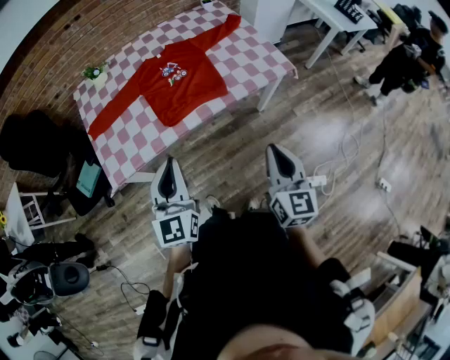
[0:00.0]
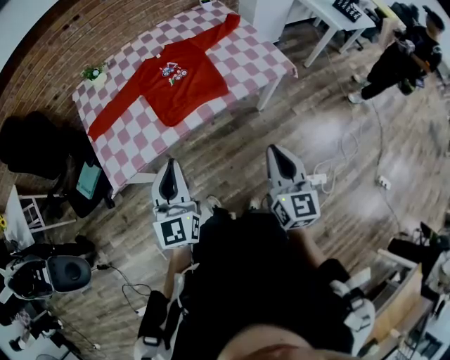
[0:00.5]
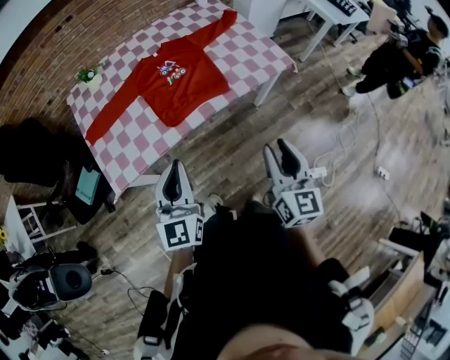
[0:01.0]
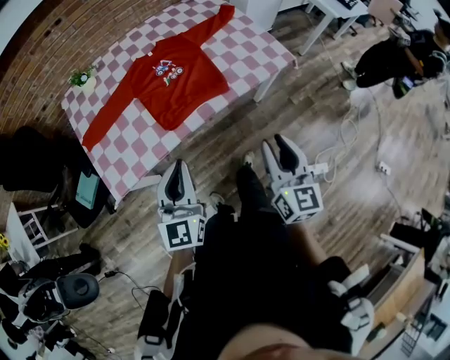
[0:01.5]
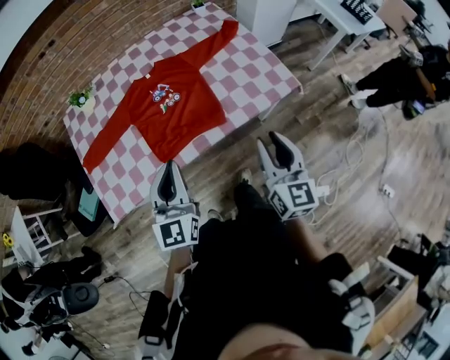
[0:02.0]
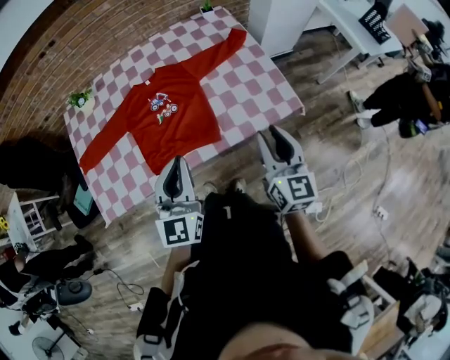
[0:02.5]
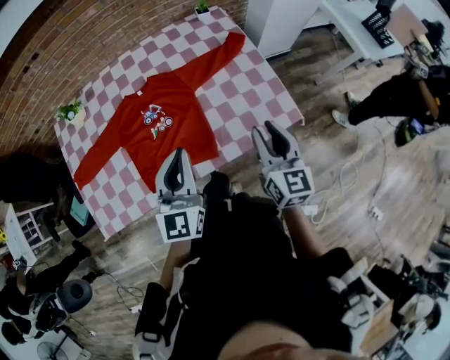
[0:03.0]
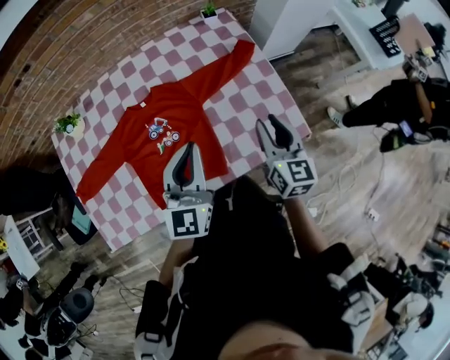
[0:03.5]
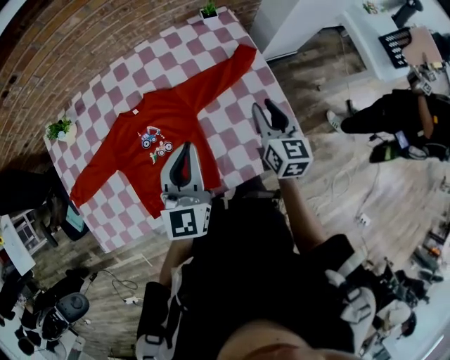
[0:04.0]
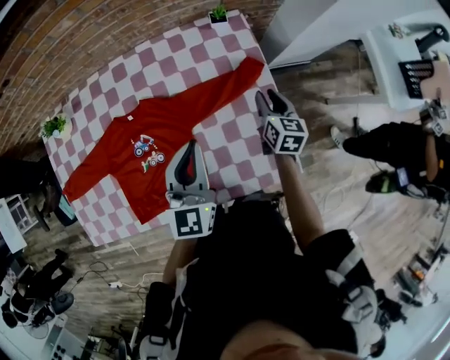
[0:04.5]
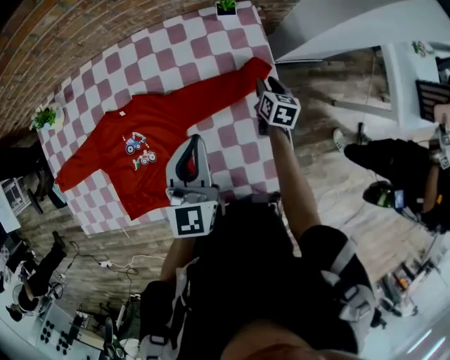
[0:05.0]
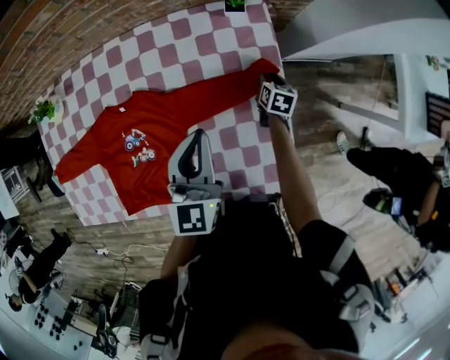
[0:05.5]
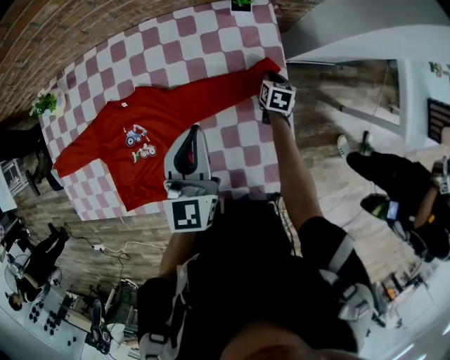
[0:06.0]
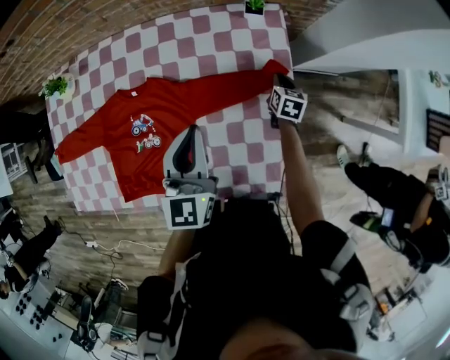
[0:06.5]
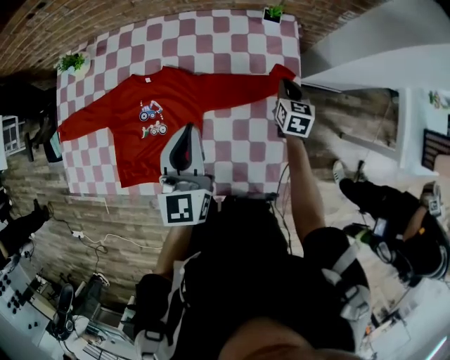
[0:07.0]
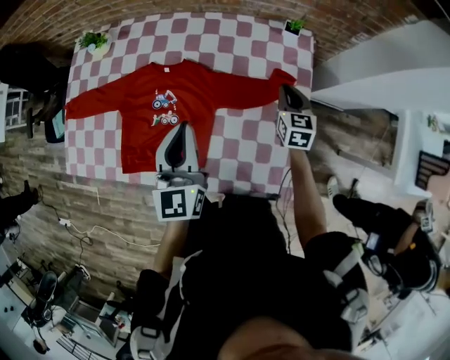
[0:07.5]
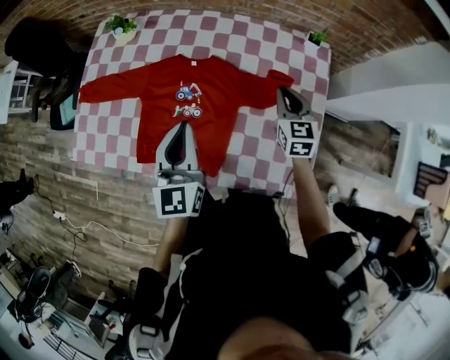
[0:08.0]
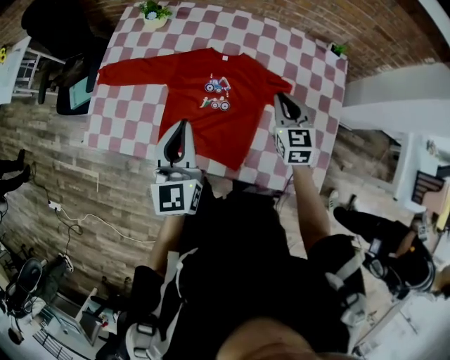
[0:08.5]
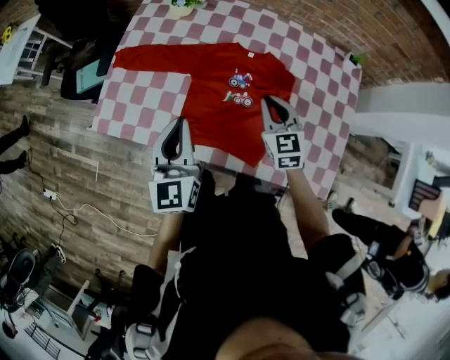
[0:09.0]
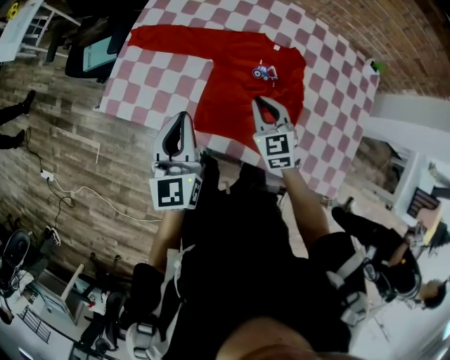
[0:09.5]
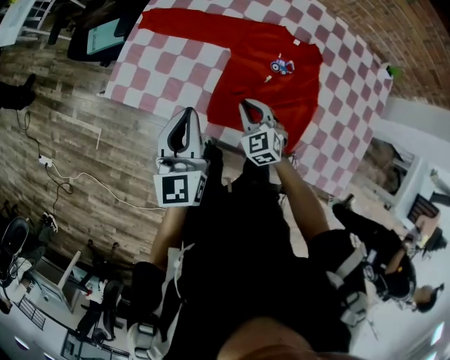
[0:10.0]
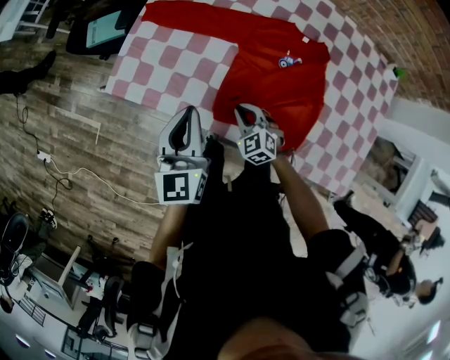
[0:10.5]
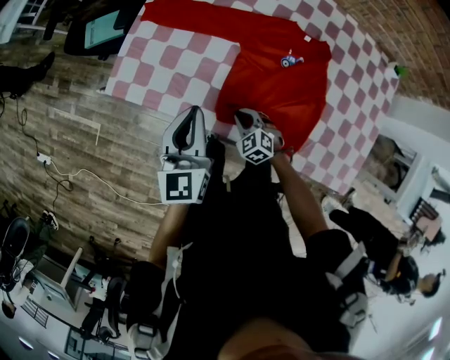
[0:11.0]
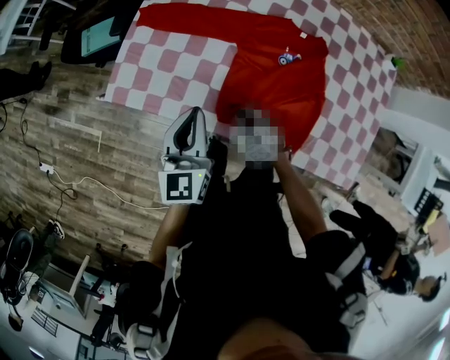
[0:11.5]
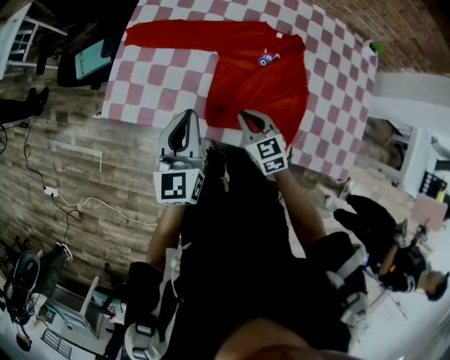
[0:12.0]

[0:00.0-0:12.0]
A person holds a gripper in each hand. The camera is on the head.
0:00.0 to 0:02.0: The grippers both shift forward by about 20 cm. The right gripper opens up.
0:02.0 to 0:04.0: Both grippers move forward, some 40 cm.
0:04.0 to 0:06.0: The right gripper goes roughly 40 cm downward and forward, points its fingers about 30 degrees further downward, and closes up. The left gripper goes roughly 20 cm forward and to the right.
0:06.0 to 0:08.0: The right gripper moves upward, to the left and backward, approximately 35 cm, and swivels some 50 degrees; the left gripper is displaced to the left and backward by roughly 30 cm, and turns by approximately 20 degrees.
0:08.0 to 0:10.0: The two grippers go roughly 40 cm to the left. The right gripper swivels roughly 40 degrees.
0:10.0 to 0:12.0: The right gripper travels downward and back again, approximately 10 cm each way, and swivels roughly 20 degrees.

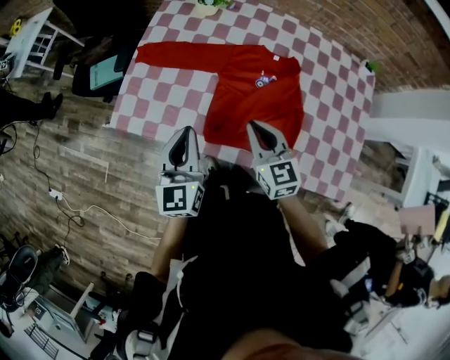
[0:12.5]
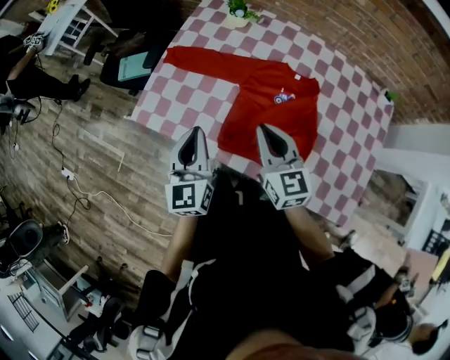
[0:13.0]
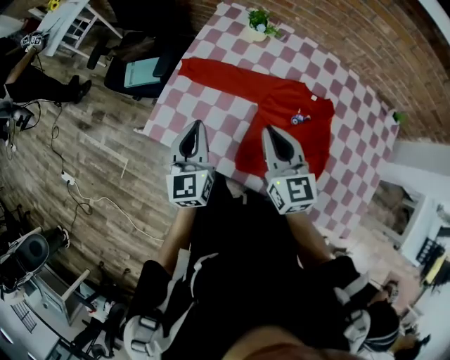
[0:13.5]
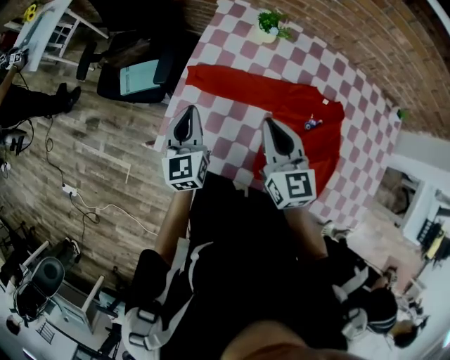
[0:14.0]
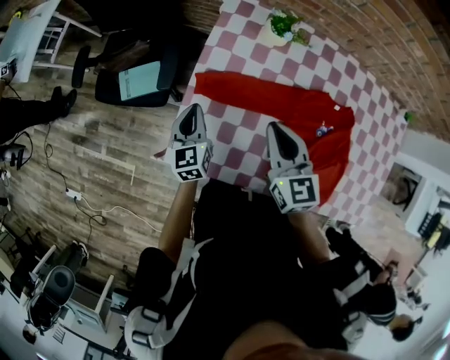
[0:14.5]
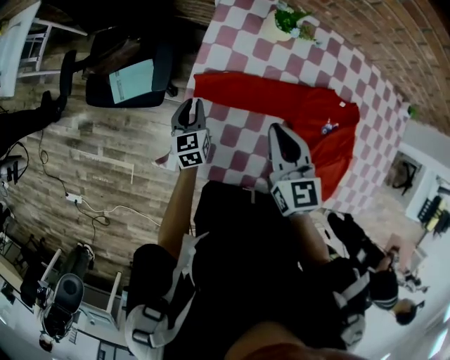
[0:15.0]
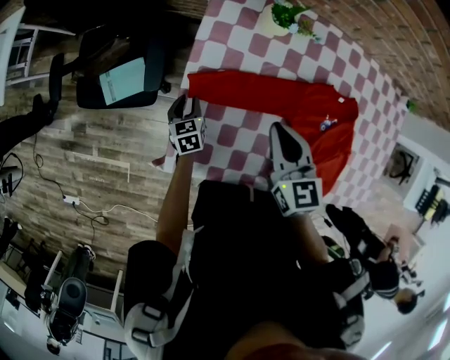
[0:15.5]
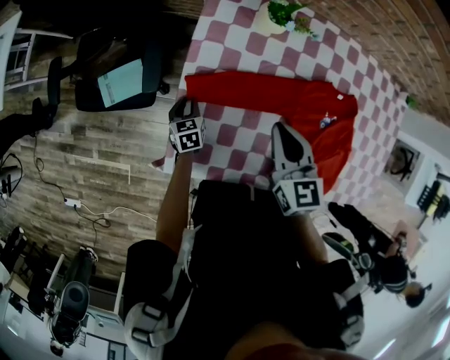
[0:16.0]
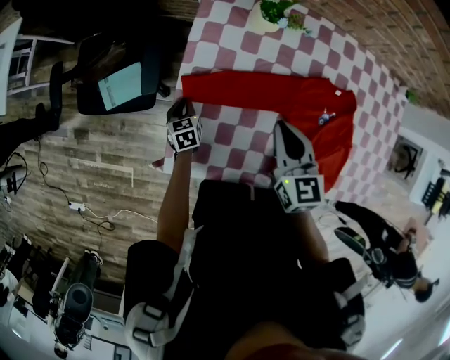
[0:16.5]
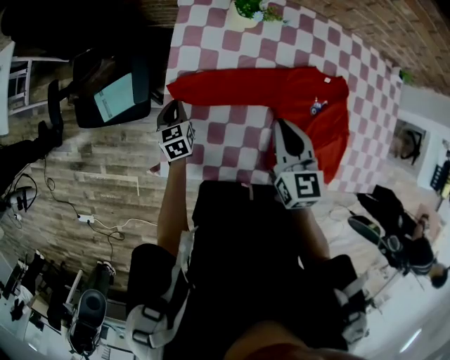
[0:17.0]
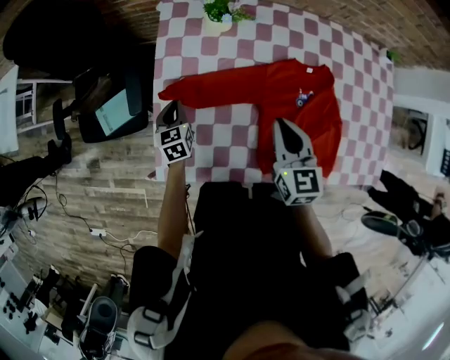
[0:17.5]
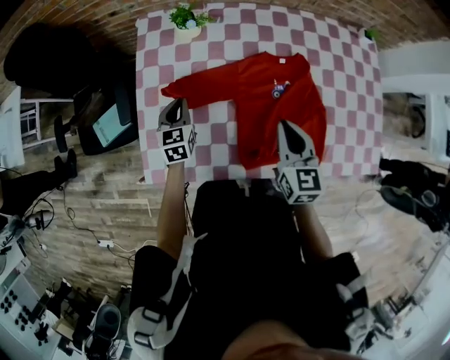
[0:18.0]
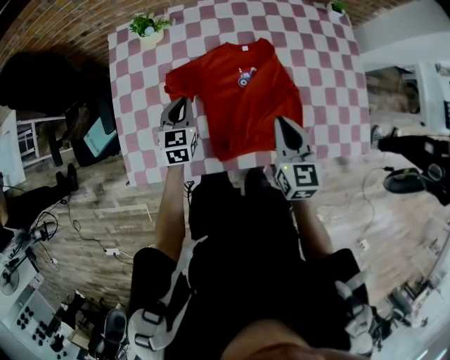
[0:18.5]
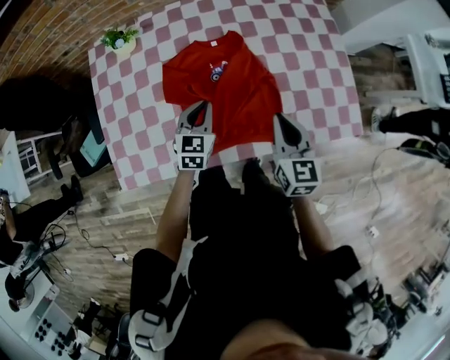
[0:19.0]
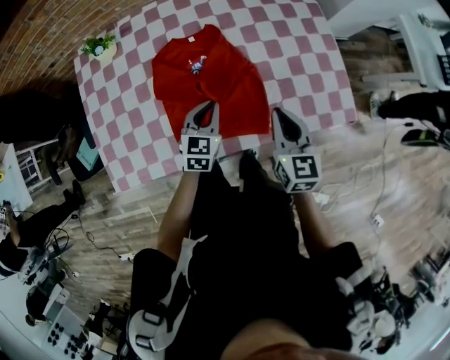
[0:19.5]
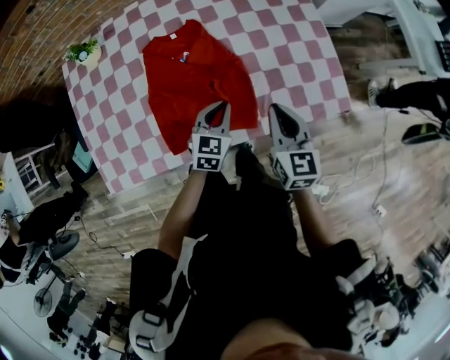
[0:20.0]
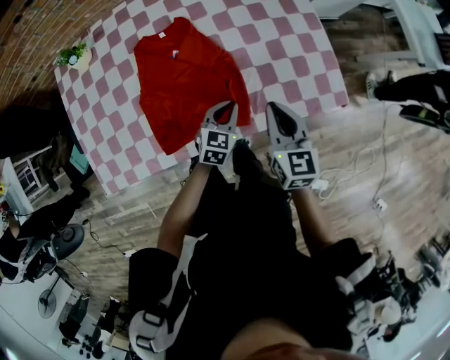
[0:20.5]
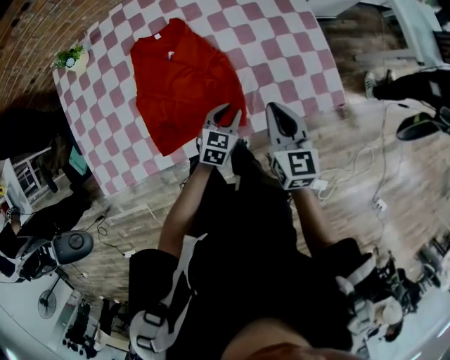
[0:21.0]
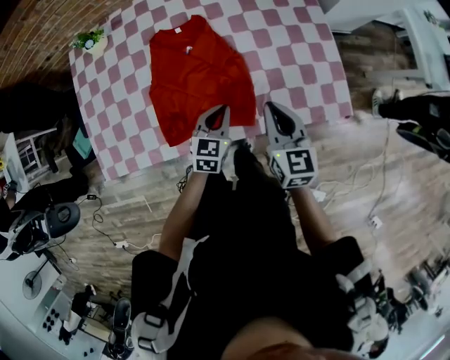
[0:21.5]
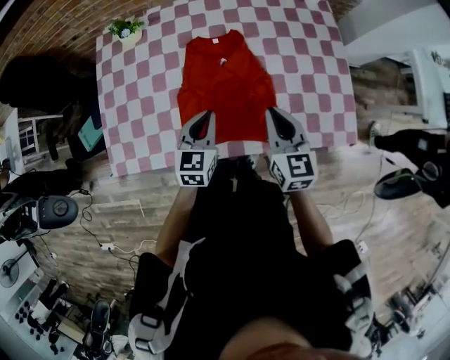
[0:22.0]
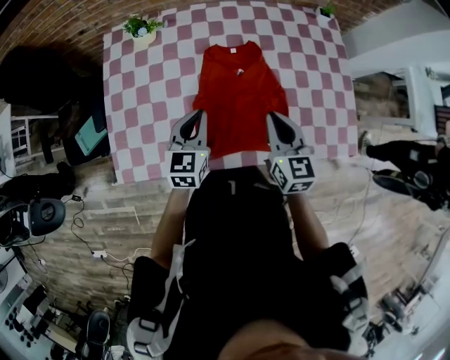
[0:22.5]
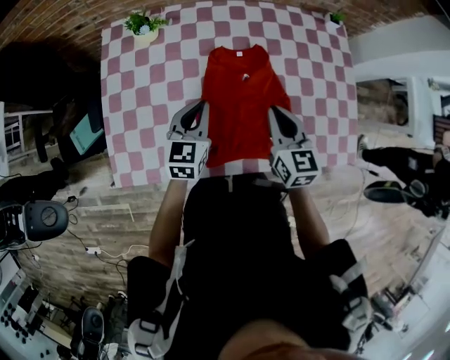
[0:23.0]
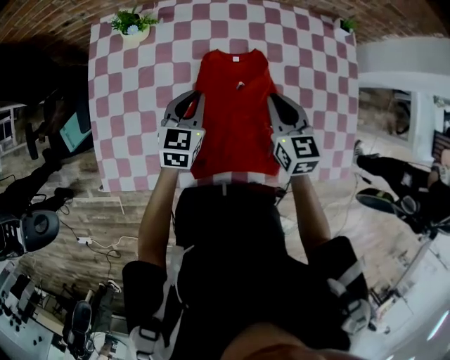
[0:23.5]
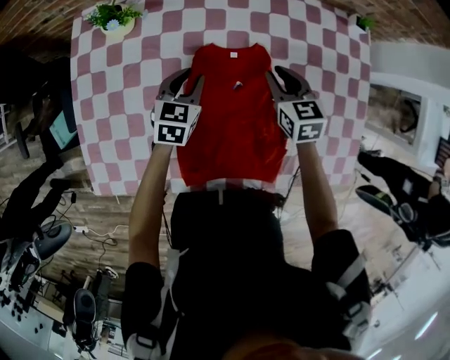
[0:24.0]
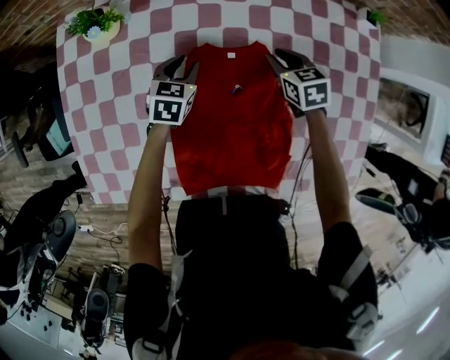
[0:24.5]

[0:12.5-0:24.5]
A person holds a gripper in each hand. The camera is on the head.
0:12.5 to 0:14.5: The grippers both shift forward and to the left by about 35 cm.
0:14.5 to 0:16.5: The right gripper changes place by about 5 cm. The left gripper heads downward, covering approximately 20 cm, changes its angle by some 30 degrees, and opens, then closes again.
0:16.5 to 0:18.5: The right gripper goes about 35 cm to the right and backward, and swivels approximately 20 degrees; the left gripper heads to the right and upward, covering approximately 40 cm, and swivels about 40 degrees.
0:18.5 to 0:20.5: The right gripper is displaced to the right by about 25 cm, while the left gripper goes roughly 40 cm to the right, and rotates roughly 30 degrees.
0:20.5 to 0:22.5: The right gripper shifts about 20 cm to the left. Meanwhile the left gripper moves to the left and upward, roughly 35 cm, and turns by about 30 degrees.
0:22.5 to 0:24.5: The two grippers go about 40 cm forward and downward. The right gripper points its fingers roughly 30 degrees further downward; the left gripper turns by roughly 20 degrees, and opens.

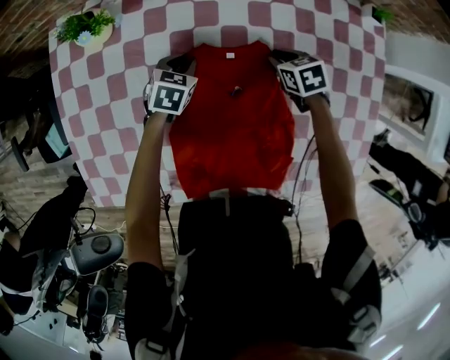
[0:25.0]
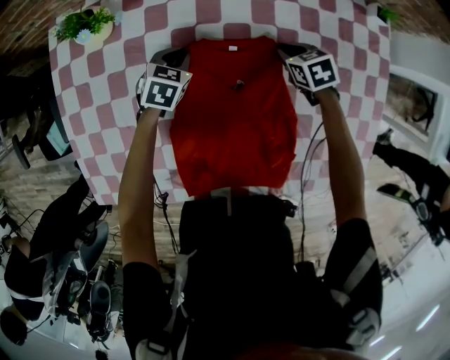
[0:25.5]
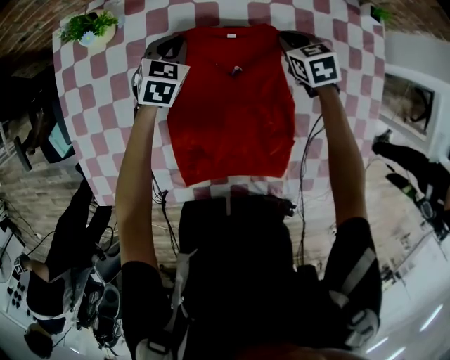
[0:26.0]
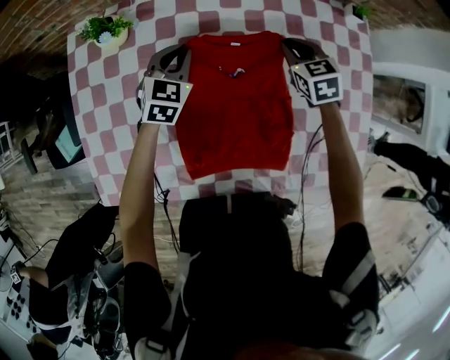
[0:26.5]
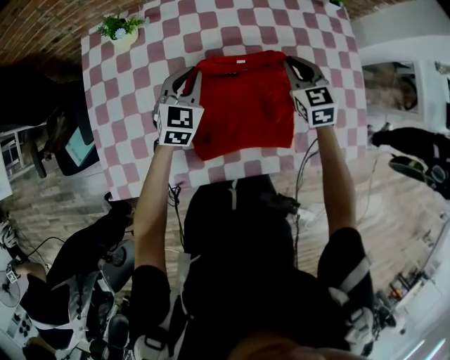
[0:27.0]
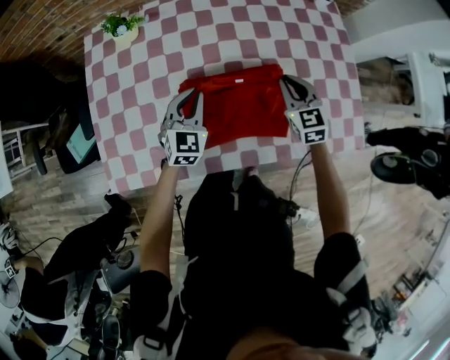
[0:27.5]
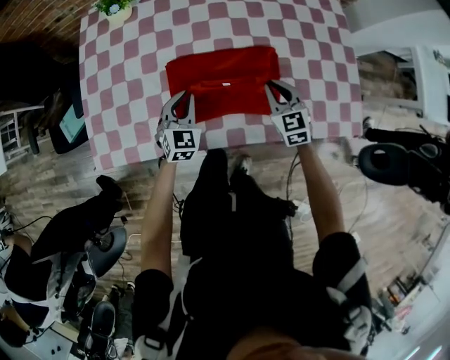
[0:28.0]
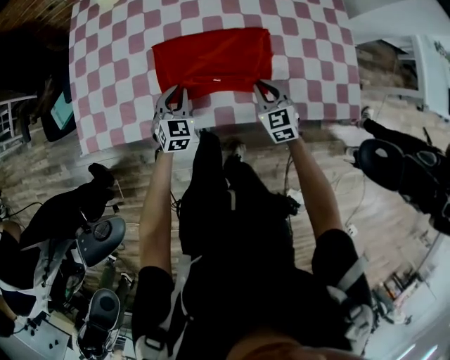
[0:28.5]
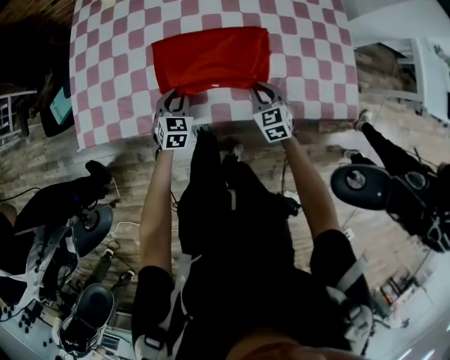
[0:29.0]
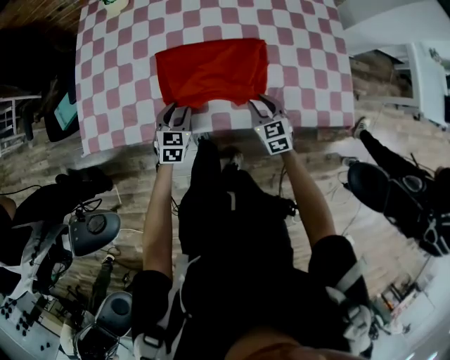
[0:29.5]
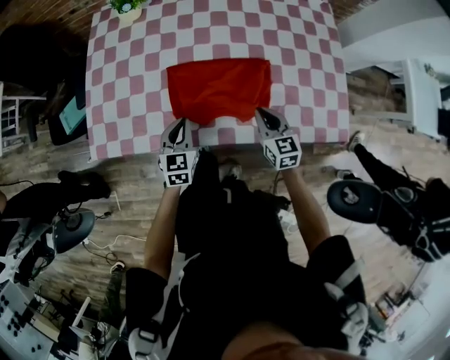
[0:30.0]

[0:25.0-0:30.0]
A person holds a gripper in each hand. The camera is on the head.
0:25.0 to 0:27.5: The grippers both shift backward and upward by approximately 30 cm. The right gripper tilts its fingers some 30 degrees upward; the left gripper angles its fingers upward, by approximately 30 degrees.
0:27.5 to 0:30.0: Both grippers move backward, about 20 cm. The left gripper turns by some 20 degrees, and opens, then closes again.
